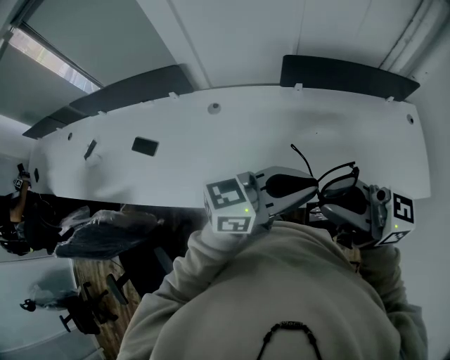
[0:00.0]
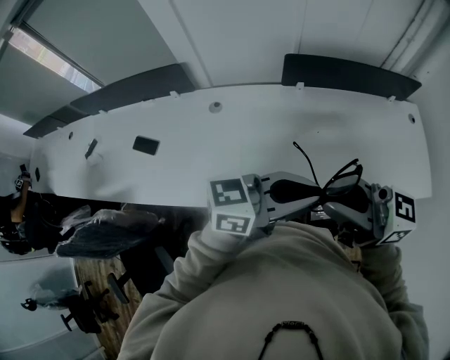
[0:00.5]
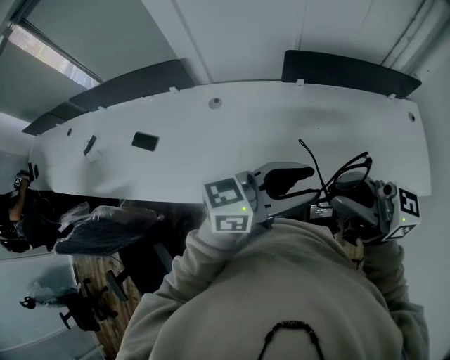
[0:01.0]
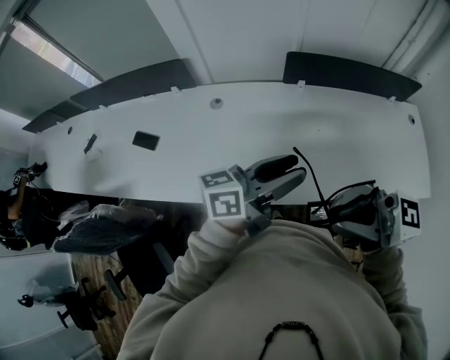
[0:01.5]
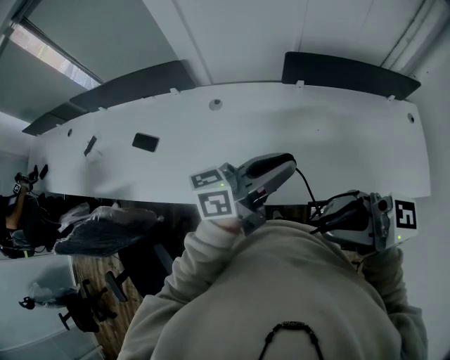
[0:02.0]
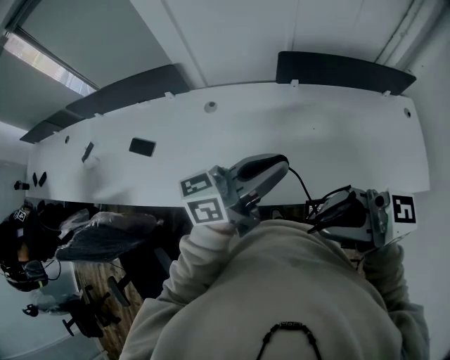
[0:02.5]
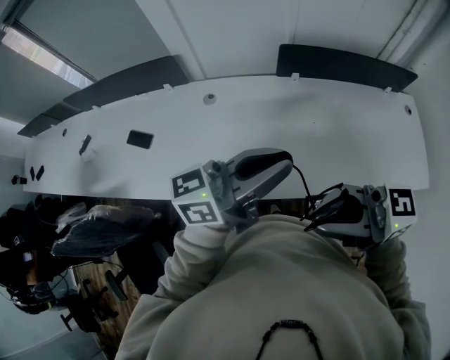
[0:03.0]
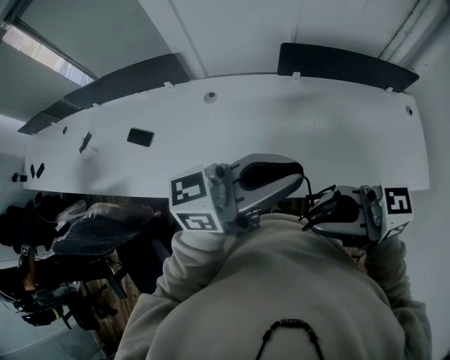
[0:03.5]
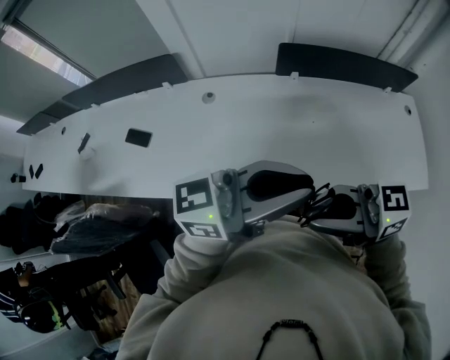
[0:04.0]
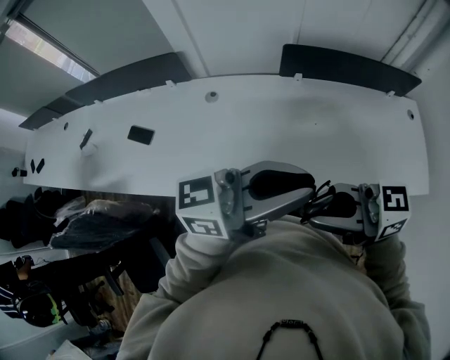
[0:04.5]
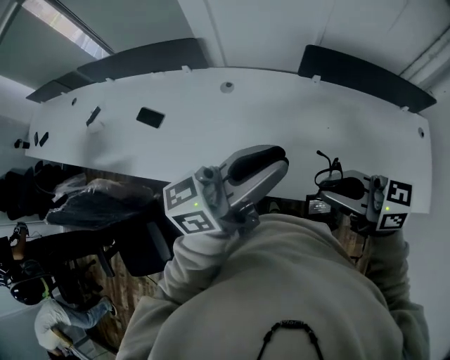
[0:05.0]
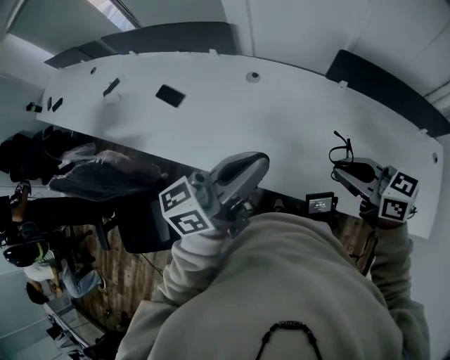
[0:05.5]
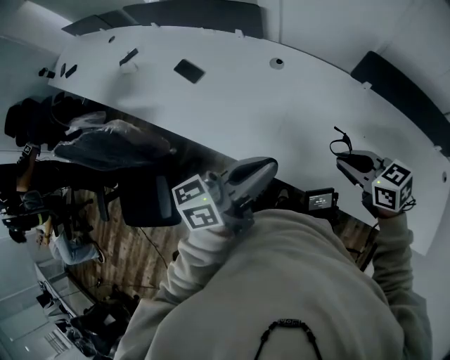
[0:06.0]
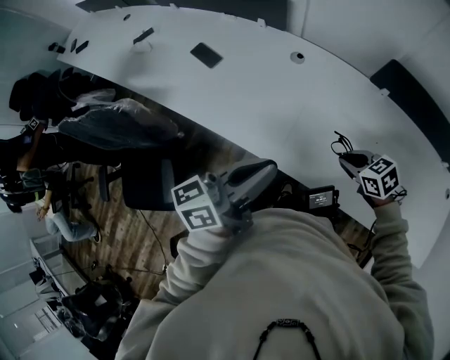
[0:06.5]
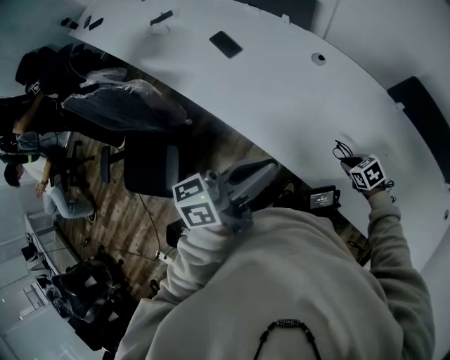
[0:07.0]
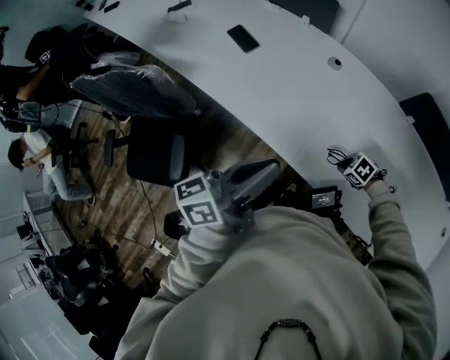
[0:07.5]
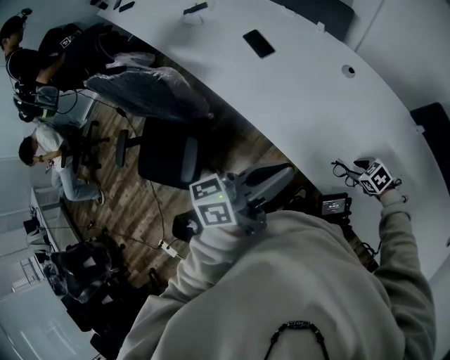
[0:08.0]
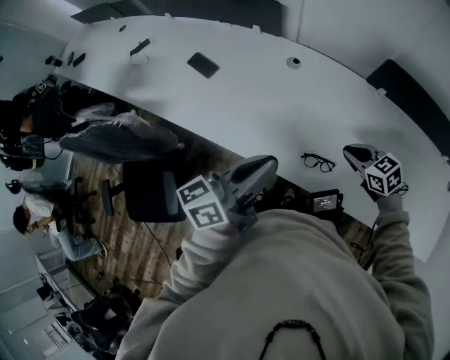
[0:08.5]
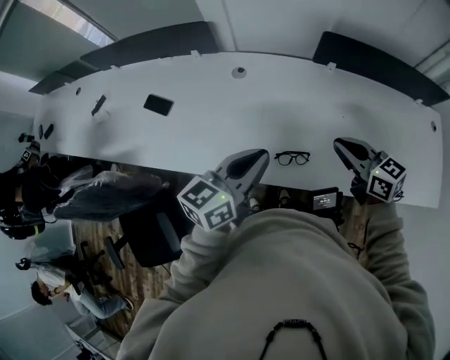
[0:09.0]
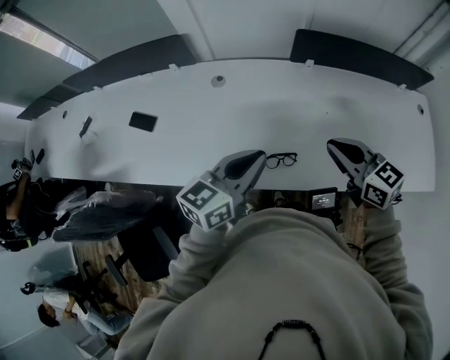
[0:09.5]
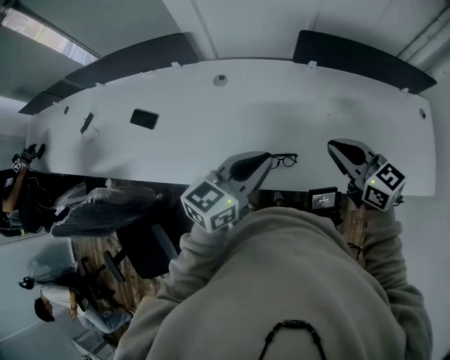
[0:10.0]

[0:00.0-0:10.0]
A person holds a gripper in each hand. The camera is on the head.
0:00.0 to 0:02.0: The left gripper ends up roughly 10 cm from where it was, rotates about 20 degrees, and opens, then closes once more.
0:02.0 to 0:04.0: The right gripper travels downward by approximately 5 cm, while the left gripper goes approximately 10 cm upward, and swivels some 20 degrees.
0:04.0 to 0:06.0: The left gripper shifts by roughly 20 cm, and turns by some 50 degrees, while the right gripper is displaced downward by about 20 cm, and tips its fingers downward by about 40 degrees.
0:06.0 to 0:08.0: The right gripper travels downward by roughly 25 cm, tips its fingers downward by roughly 30 degrees, and opens up. Meanwhile the left gripper moves approximately 10 cm.
0:08.0 to 0:10.0: The right gripper is displaced upward by roughly 30 cm, tilts its fingers about 50 degrees upward, and closes. Meanwhile the left gripper changes place by approximately 20 cm, and swivels approximately 50 degrees.

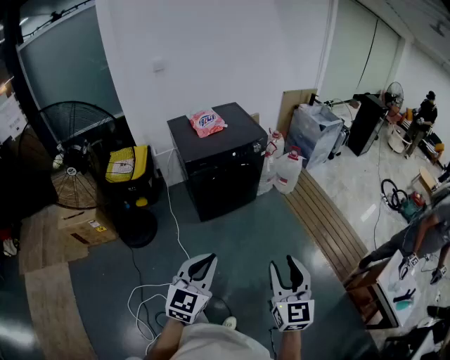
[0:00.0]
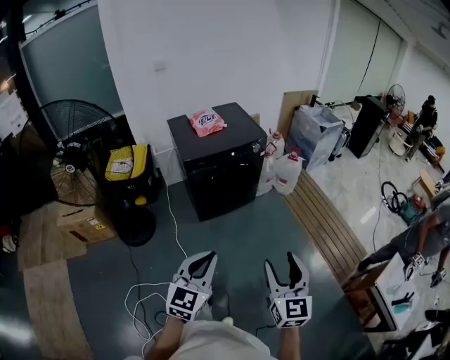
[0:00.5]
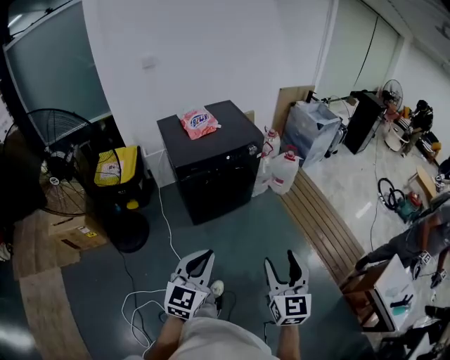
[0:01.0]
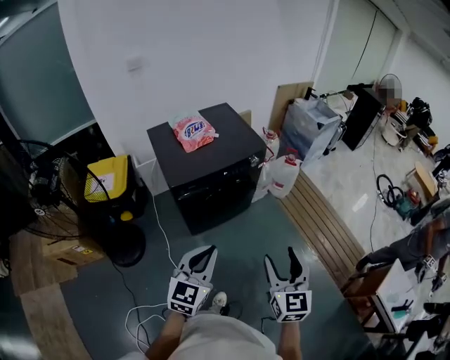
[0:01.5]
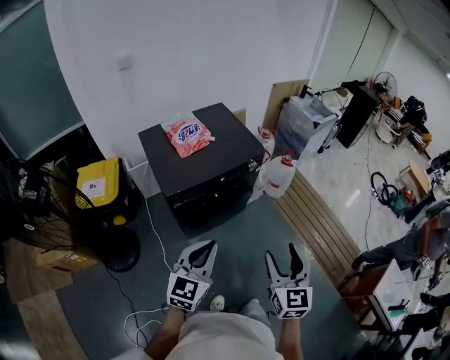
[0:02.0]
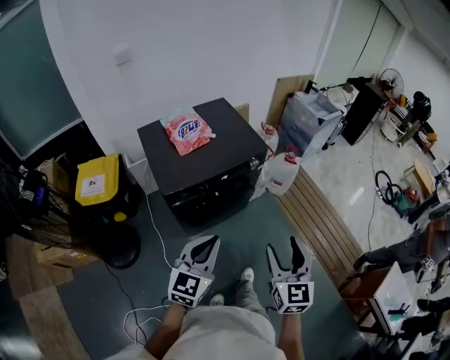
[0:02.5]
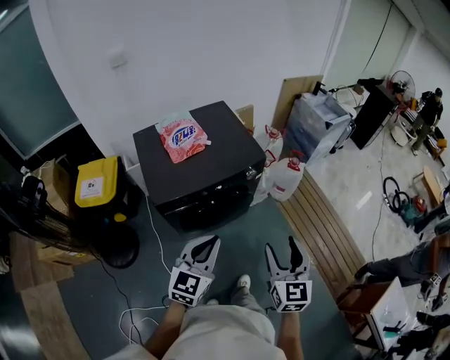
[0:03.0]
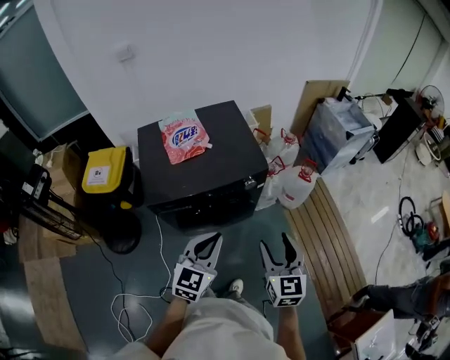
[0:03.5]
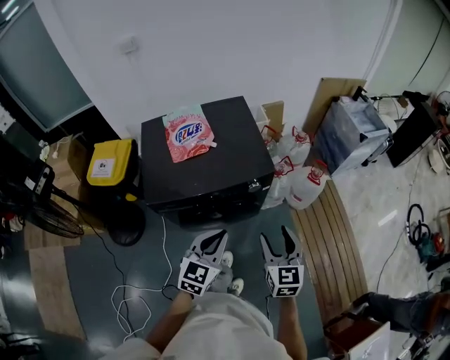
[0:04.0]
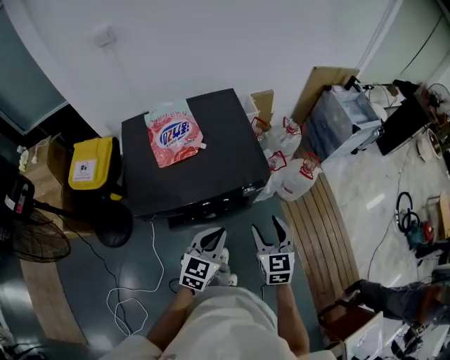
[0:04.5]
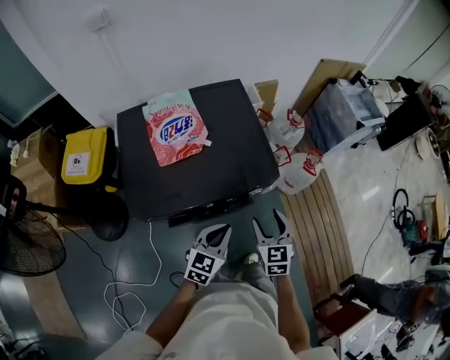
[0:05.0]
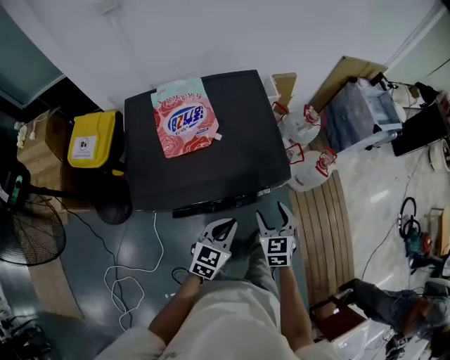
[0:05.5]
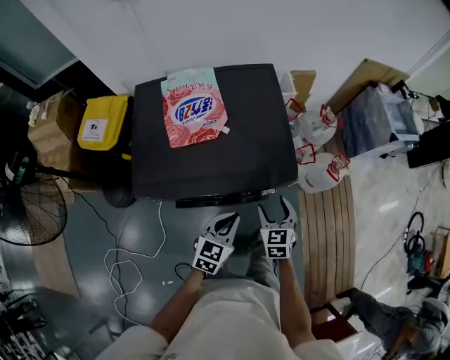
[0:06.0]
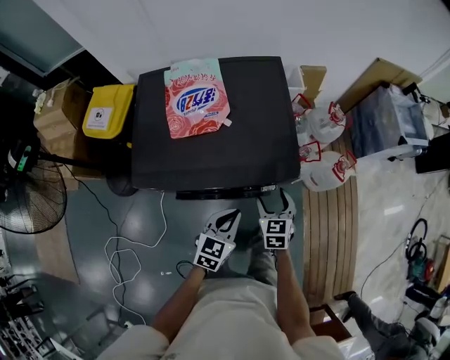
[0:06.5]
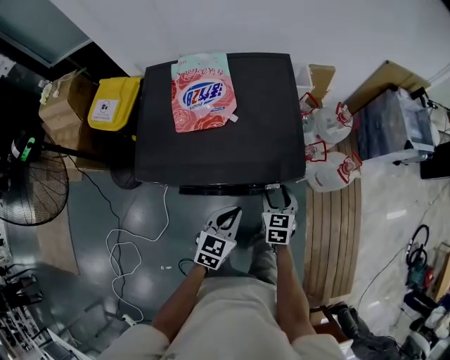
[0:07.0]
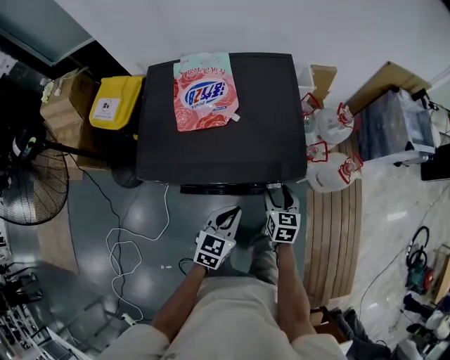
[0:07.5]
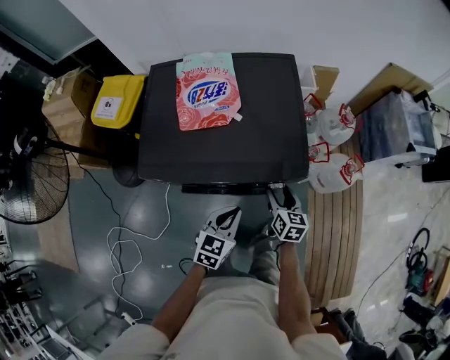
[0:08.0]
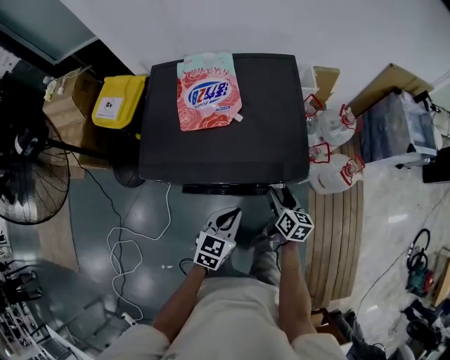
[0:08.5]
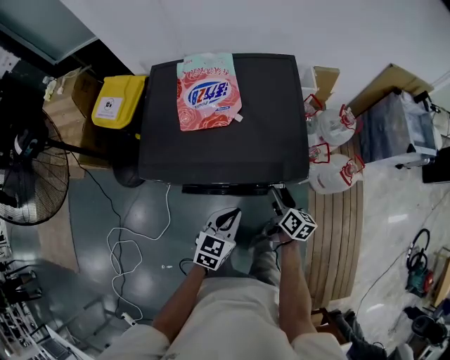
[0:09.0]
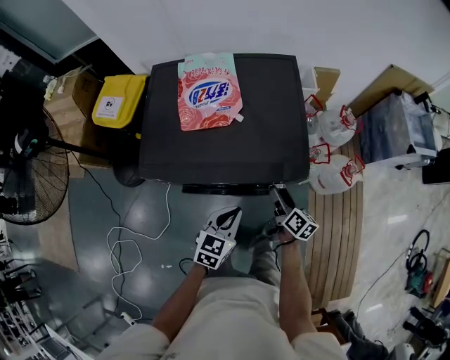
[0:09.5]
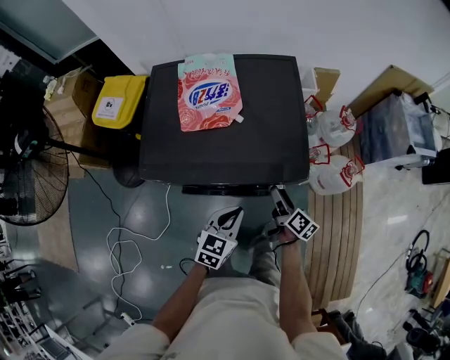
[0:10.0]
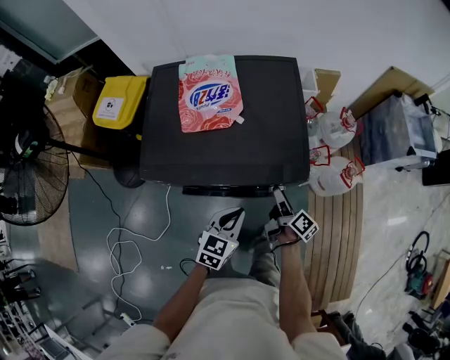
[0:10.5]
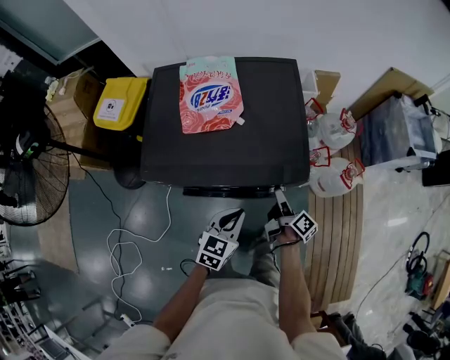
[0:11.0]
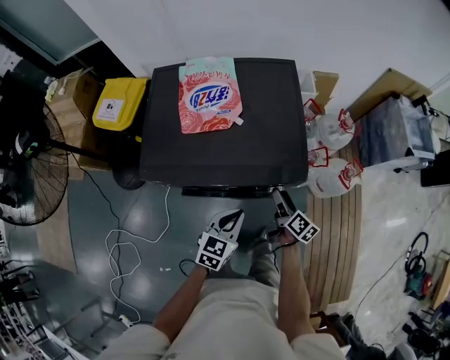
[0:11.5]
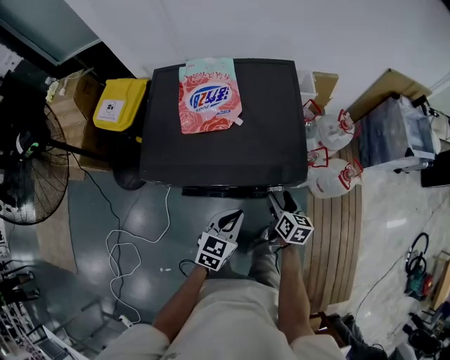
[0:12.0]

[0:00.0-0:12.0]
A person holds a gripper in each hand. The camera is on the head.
0:00.0 to 0:02.0: Both grippers move forward, roughly 30 cm.
0:02.0 to 0:04.0: The right gripper goes approximately 30 cm forward, and turns by some 20 degrees. Meanwhile the left gripper heads forward and to the right, covering some 30 cm.
0:04.0 to 0:06.0: The two grippers go about 25 cm downward and forward. The right gripper swivels approximately 20 degrees.
0:06.0 to 0:08.0: The right gripper moves some 5 cm, and rotates roughly 30 degrees.
0:08.0 to 0:10.0: The right gripper rotates approximately 40 degrees.
0:10.0 to 0:12.0: The right gripper swivels approximately 30 degrees.

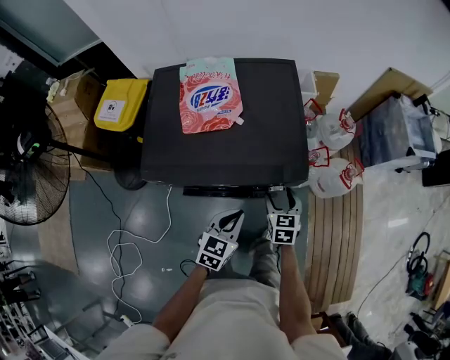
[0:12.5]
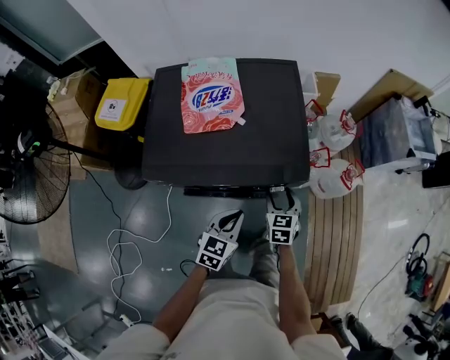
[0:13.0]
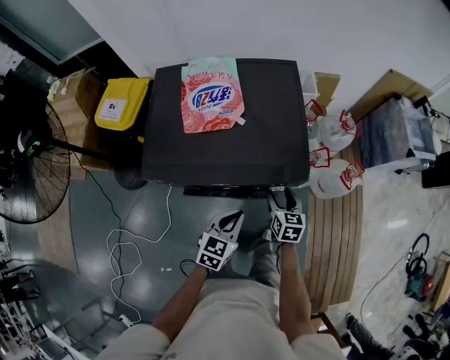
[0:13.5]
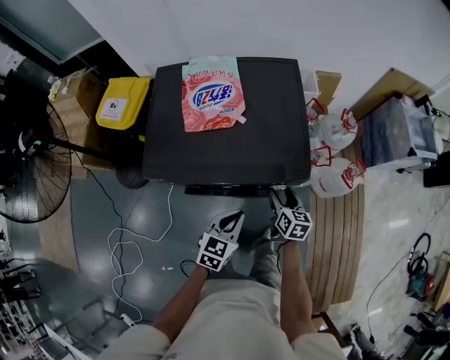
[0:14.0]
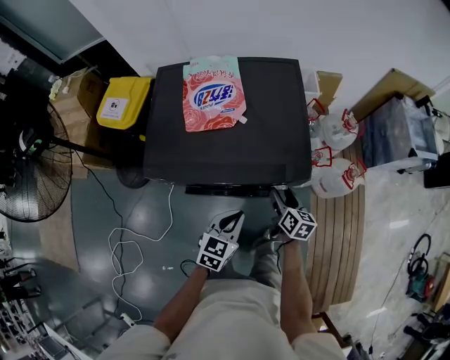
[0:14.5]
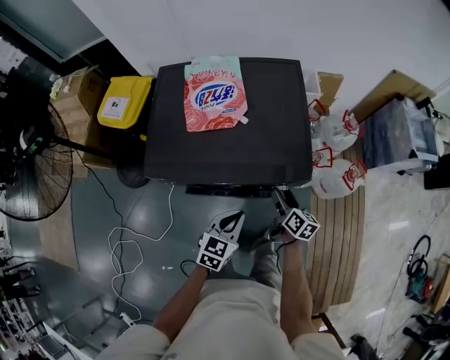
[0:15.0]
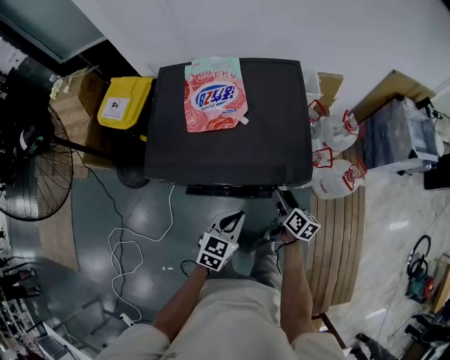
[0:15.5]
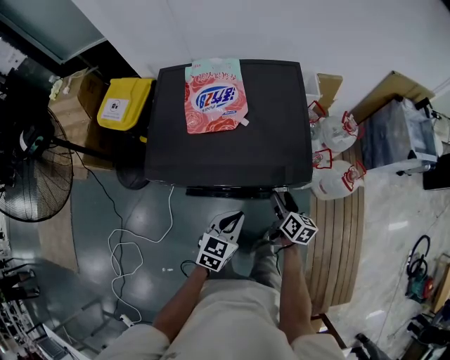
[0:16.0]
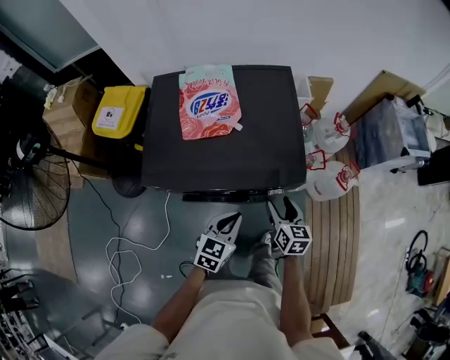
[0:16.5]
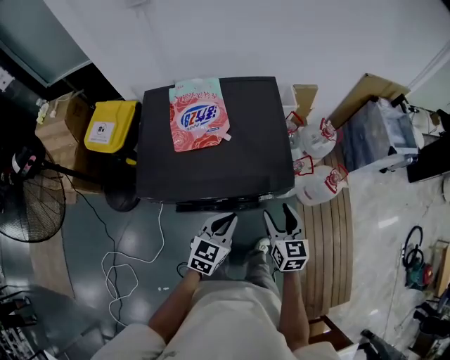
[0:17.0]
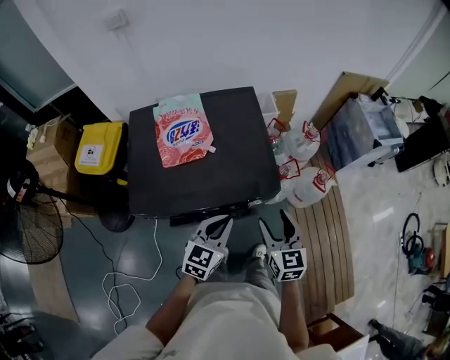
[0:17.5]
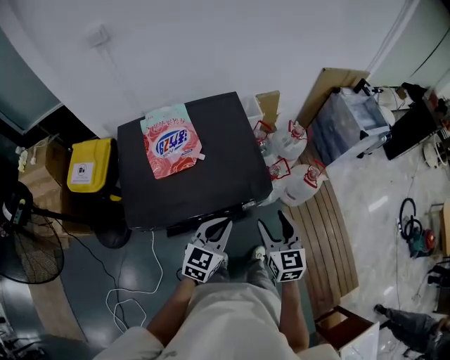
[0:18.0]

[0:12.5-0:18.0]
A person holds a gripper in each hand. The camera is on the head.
0:12.5 to 0:14.5: The right gripper rotates approximately 30 degrees.
0:14.5 to 0:16.0: The grippers make only small movements.
0:16.0 to 0:18.0: The left gripper moves upward, roughly 10 cm, and swivels roughly 20 degrees. Meanwhile the right gripper goes some 20 cm upward, and swivels some 40 degrees.
